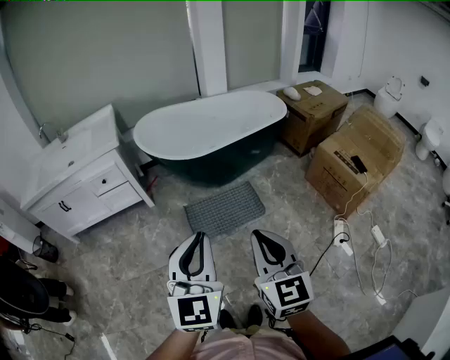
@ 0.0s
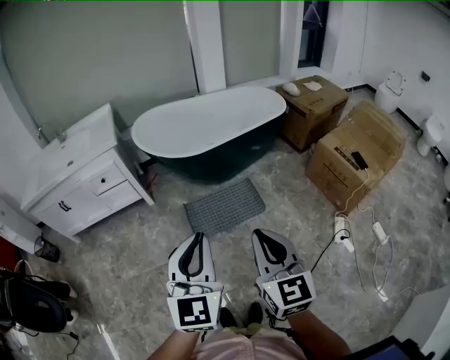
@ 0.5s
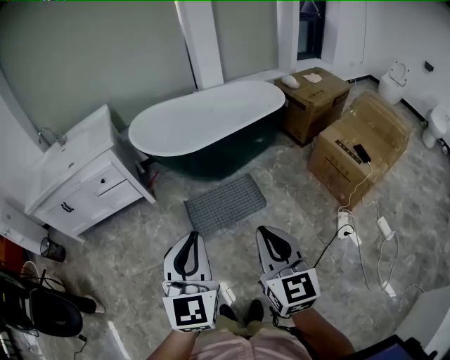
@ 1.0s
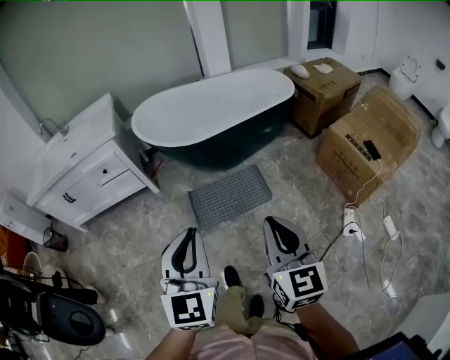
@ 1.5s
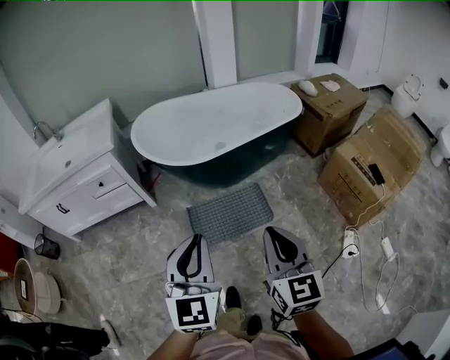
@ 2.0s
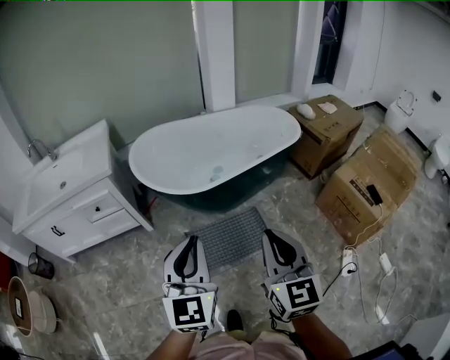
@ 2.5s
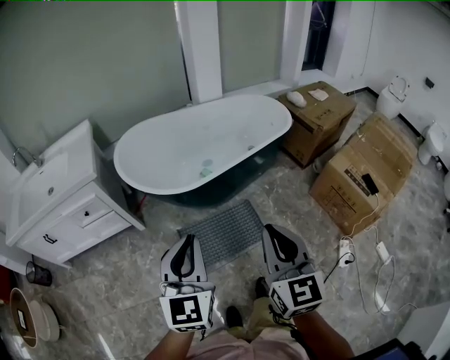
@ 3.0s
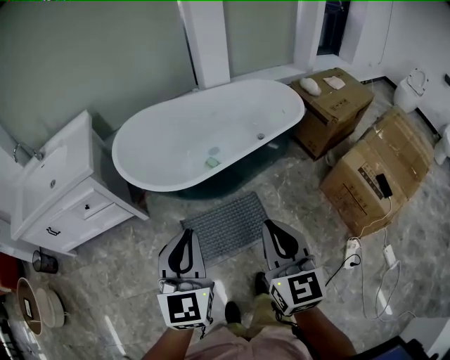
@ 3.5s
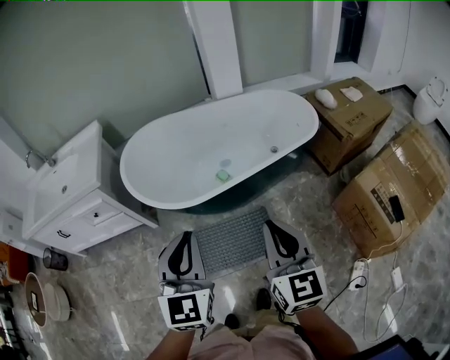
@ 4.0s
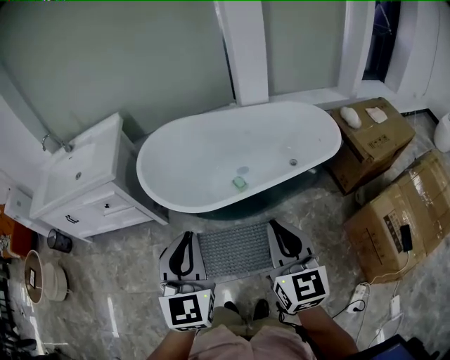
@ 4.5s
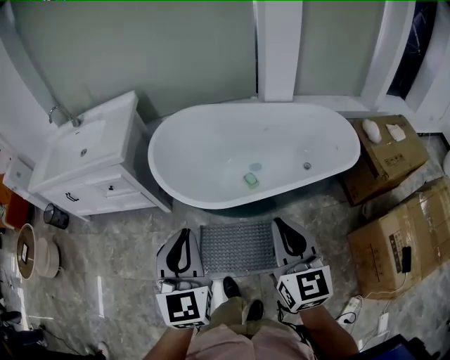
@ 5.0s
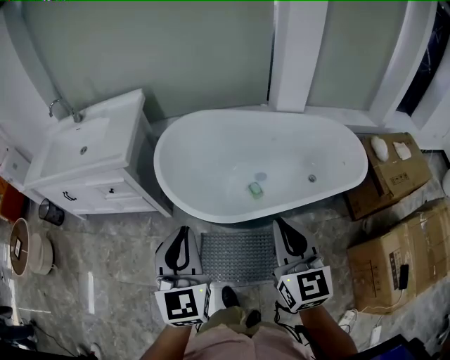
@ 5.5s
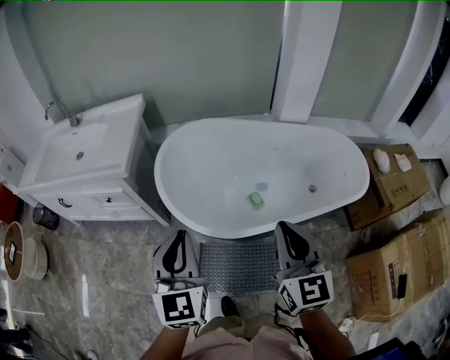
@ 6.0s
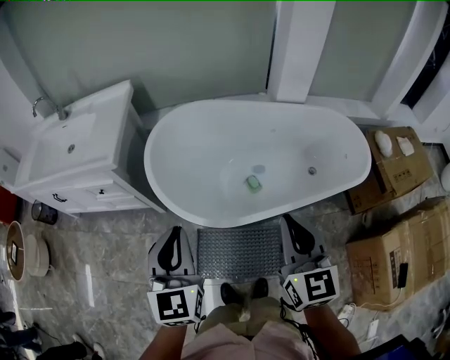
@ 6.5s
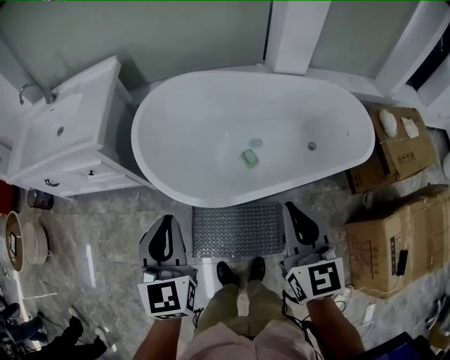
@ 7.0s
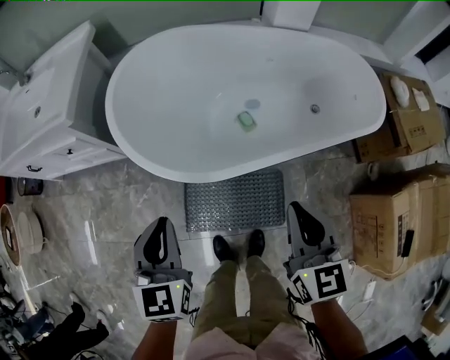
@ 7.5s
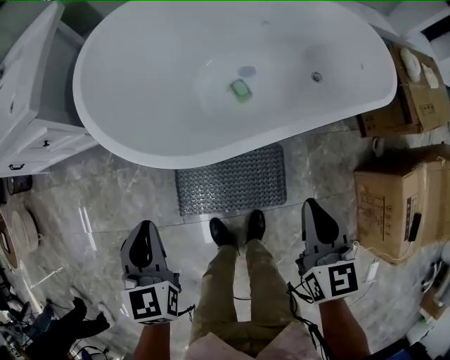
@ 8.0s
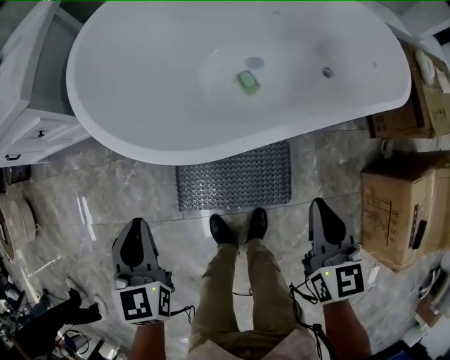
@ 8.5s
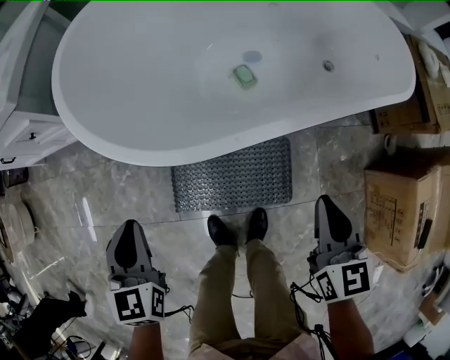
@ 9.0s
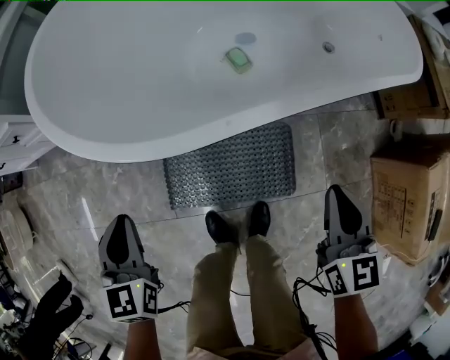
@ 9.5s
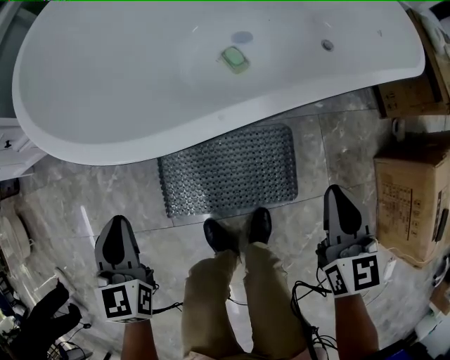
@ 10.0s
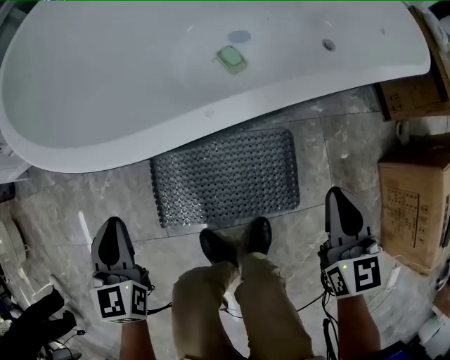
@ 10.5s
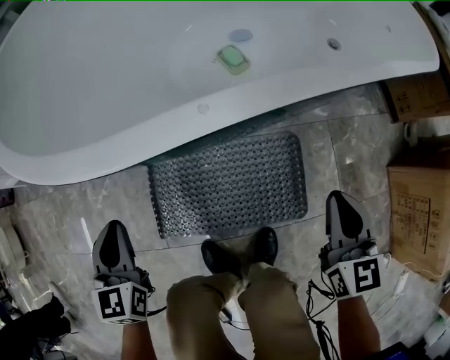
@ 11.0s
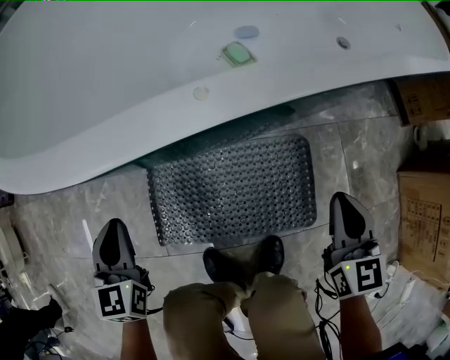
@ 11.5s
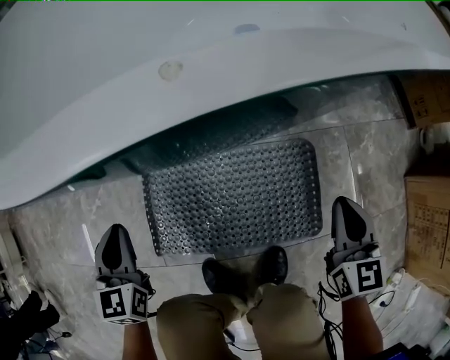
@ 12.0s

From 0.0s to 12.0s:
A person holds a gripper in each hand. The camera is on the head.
From 0.0s to 2.0s: The right gripper goes approximately 15 cm forward and to the right. Meanwhile the left gripper shifts roughly 15 cm forward.
From 2.0s to 4.0s: The grippers both shift forward by approximately 25 cm.
From 4.0s to 6.0s: The grippers both shift forward and to the left by some 25 cm.
From 6.0s to 8.0s: The grippers both shift downward by about 25 cm. The right gripper changes its angle by approximately 30 degrees. The left gripper turns by some 30 degrees.
From 8.0s to 10.0s: Both grippers travel together downward, roughly 20 cm.
From 10.0s to 12.0s: The two grippers go approximately 20 cm downward.

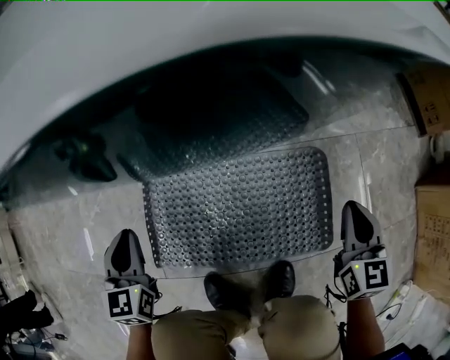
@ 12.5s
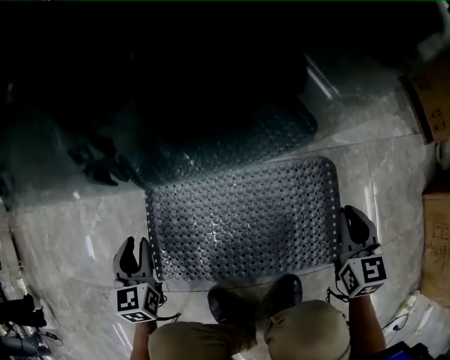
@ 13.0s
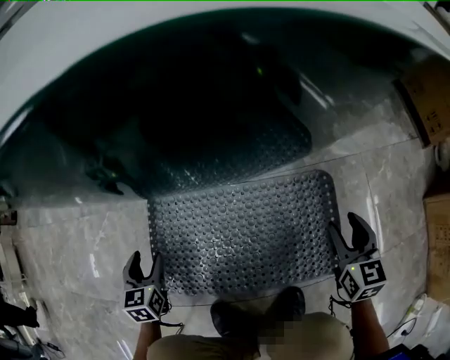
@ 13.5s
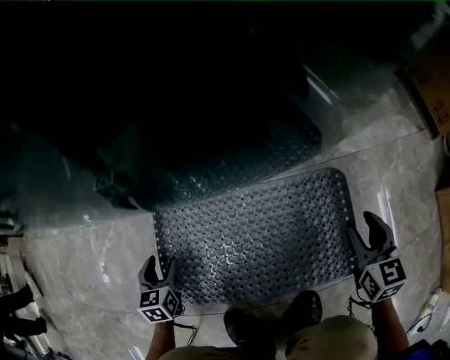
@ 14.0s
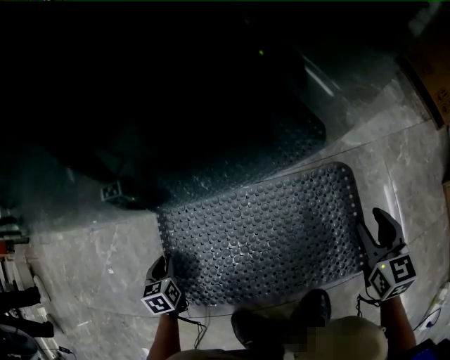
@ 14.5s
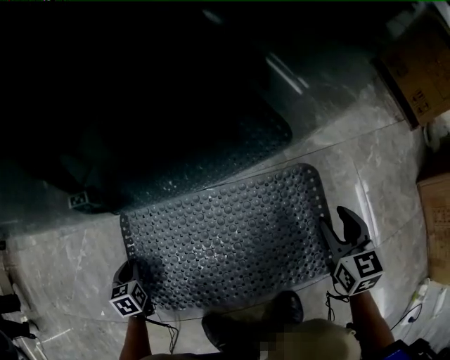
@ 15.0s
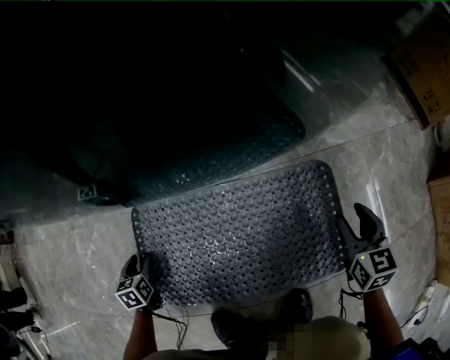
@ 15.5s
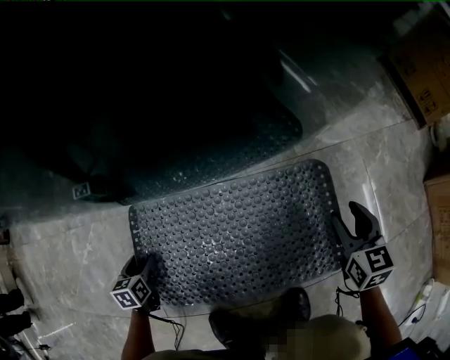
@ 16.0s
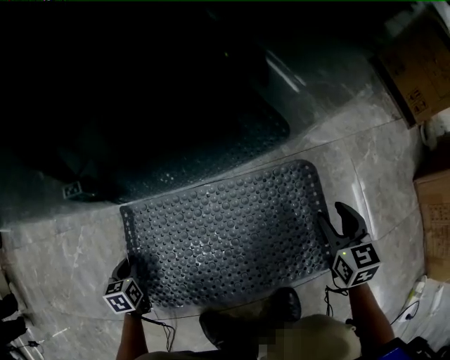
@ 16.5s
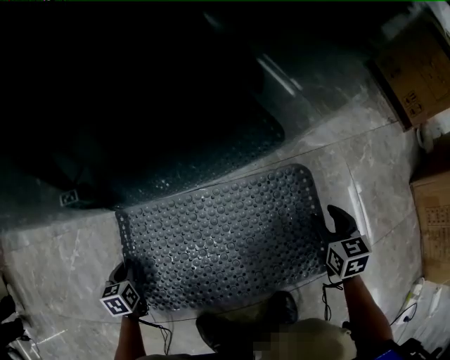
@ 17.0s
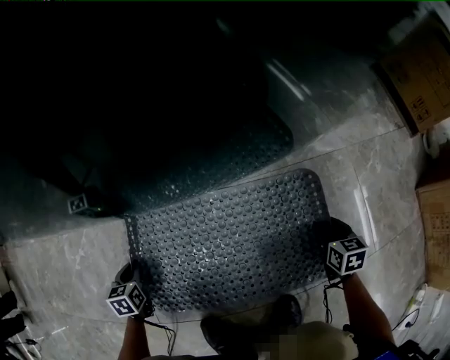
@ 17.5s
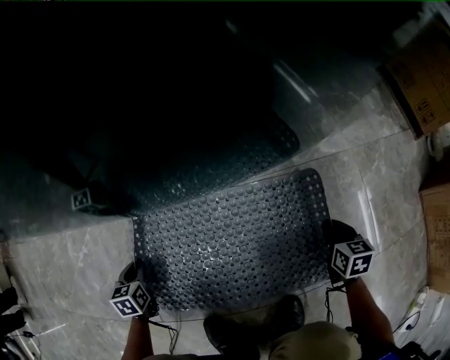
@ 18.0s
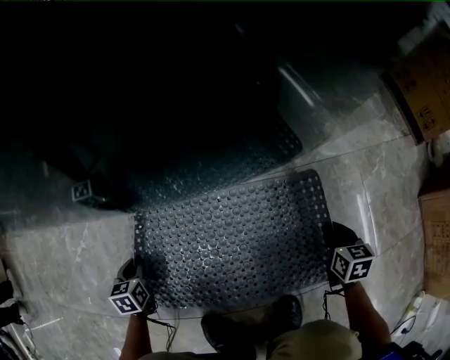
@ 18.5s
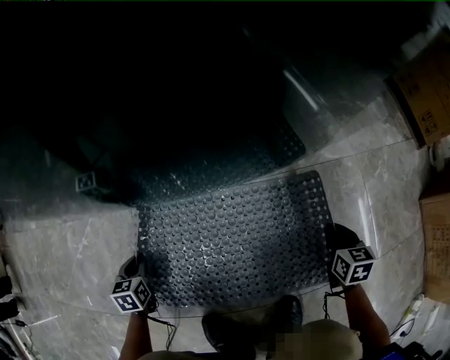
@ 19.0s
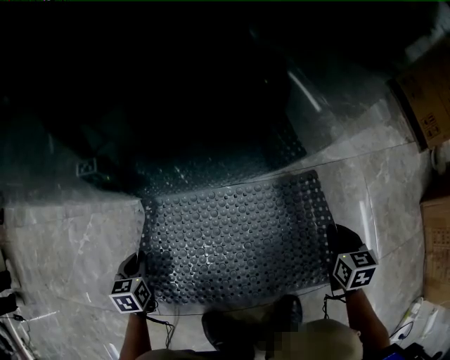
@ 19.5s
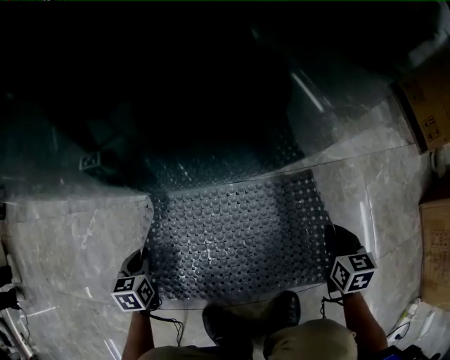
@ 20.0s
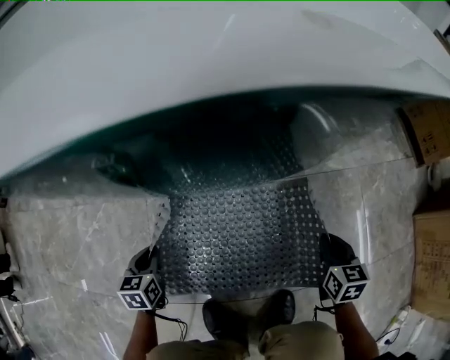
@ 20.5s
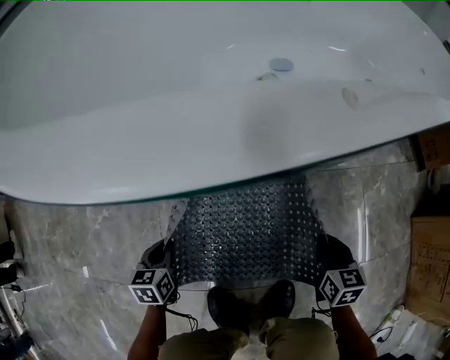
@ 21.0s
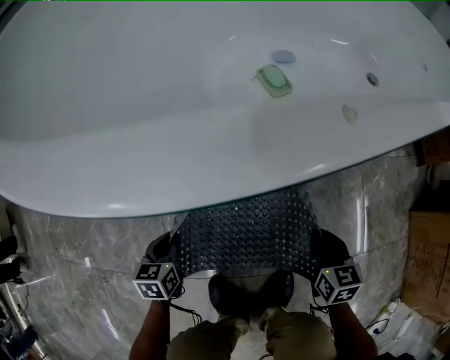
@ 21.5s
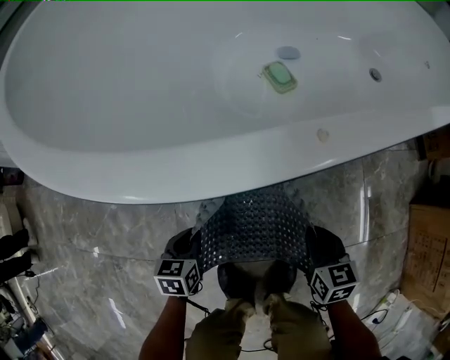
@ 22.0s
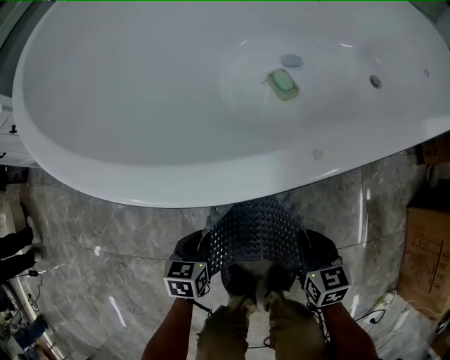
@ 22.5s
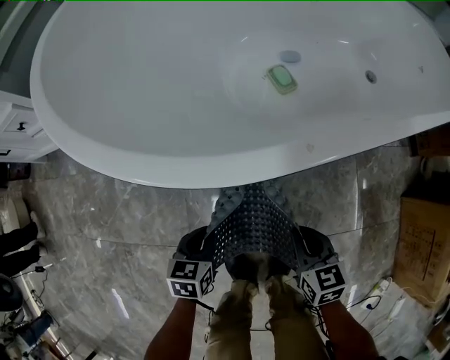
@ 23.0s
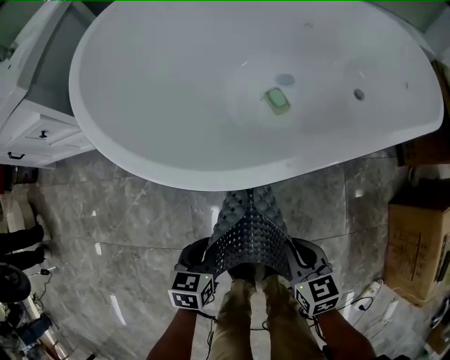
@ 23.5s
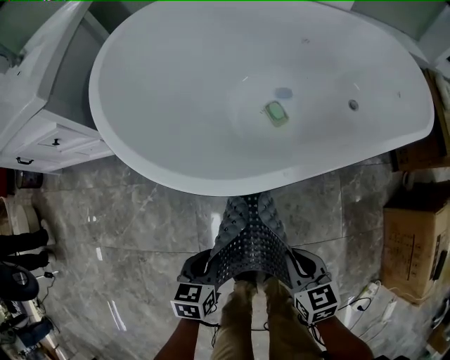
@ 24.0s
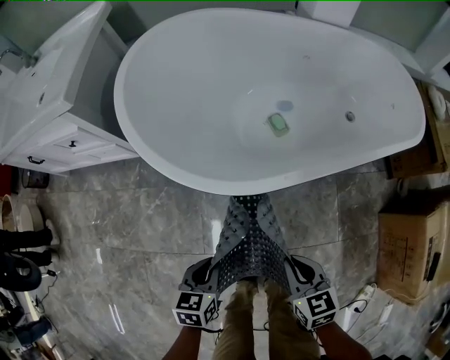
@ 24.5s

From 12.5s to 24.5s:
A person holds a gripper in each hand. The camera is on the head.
From 12.5s to 14.5s: The left gripper moves downward, about 25 cm, turns by about 20 degrees, and opens, then closes again. Meanwhile the right gripper heads downward, covering roughly 10 cm, and opens.
From 14.5s to 16.5s: The left gripper opens and closes again.
From 16.5s to 18.5s: The right gripper goes some 10 cm downward, and closes its fingers.
From 18.5s to 20.5s: The left gripper heads upward, covering some 10 cm; the right gripper heads upward and to the left, covering approximately 10 cm.
From 20.5s to 22.5s: The left gripper travels upward and to the right by approximately 15 cm. Meanwhile the right gripper travels upward and to the left by some 20 cm.
From 22.5s to 24.5s: The grippers both shift upward by approximately 30 cm.

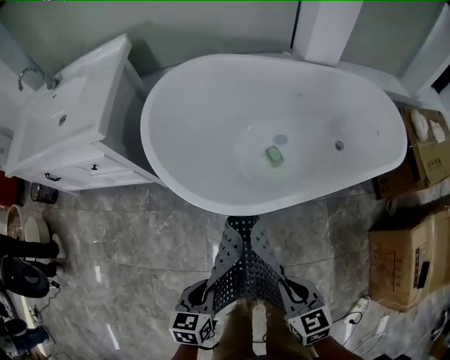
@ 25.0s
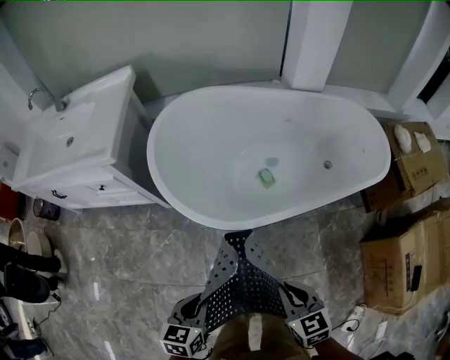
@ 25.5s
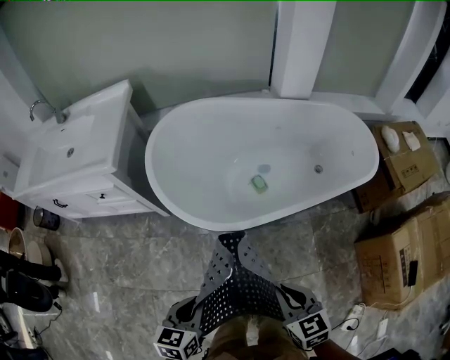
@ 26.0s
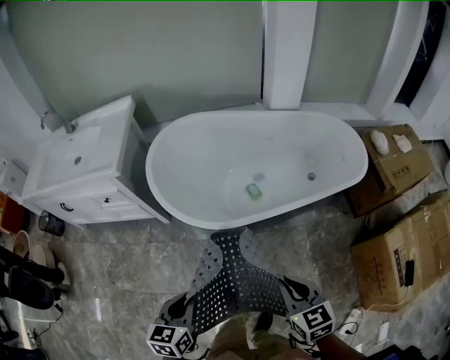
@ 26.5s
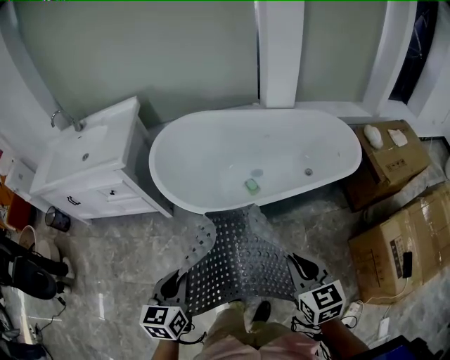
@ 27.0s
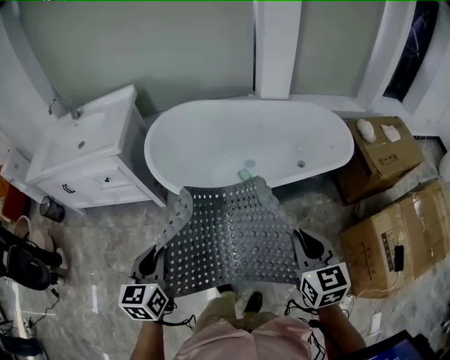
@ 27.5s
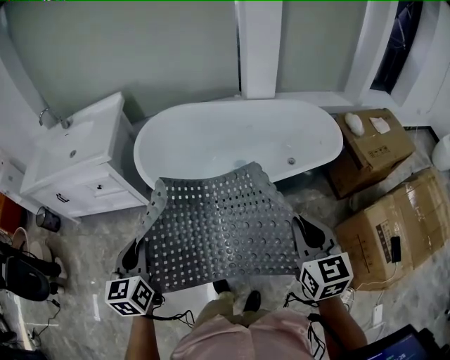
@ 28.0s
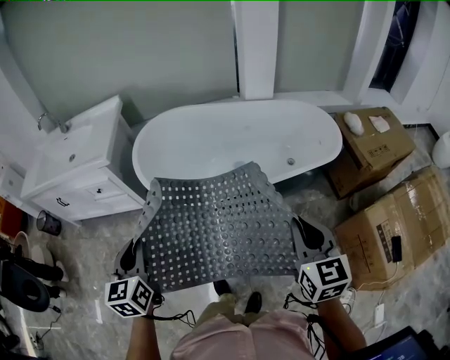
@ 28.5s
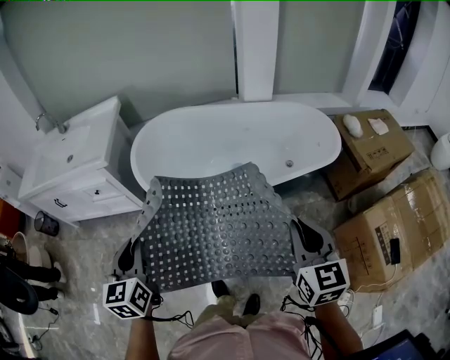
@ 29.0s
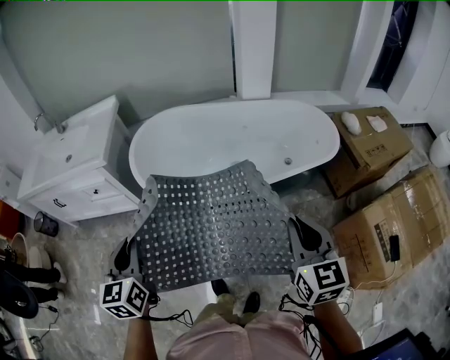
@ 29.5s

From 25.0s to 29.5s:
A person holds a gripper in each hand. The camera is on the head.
From 25.0s to 27.0s: The left gripper shifts approximately 25 cm upward, and swivels about 20 degrees. Meanwhile the right gripper is displaced upward and to the right by about 25 cm.
From 27.0s to 29.5s: The right gripper goes approximately 10 cm upward and to the right, while the left gripper heads upward, covering about 10 cm.
